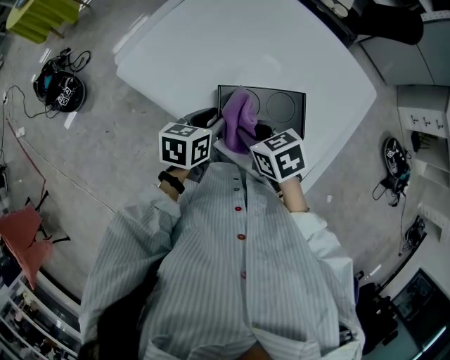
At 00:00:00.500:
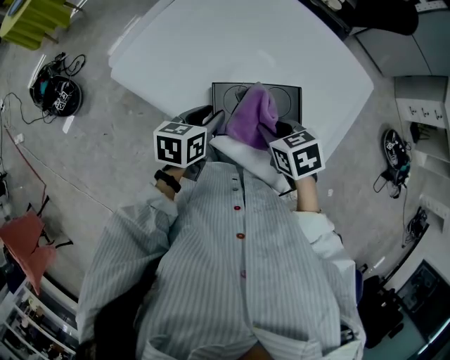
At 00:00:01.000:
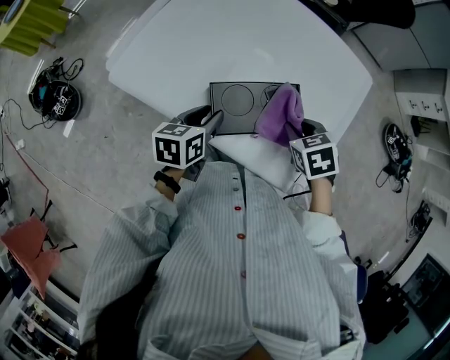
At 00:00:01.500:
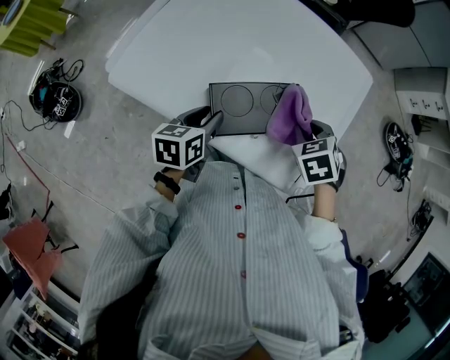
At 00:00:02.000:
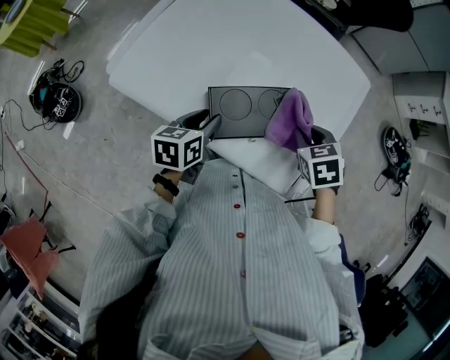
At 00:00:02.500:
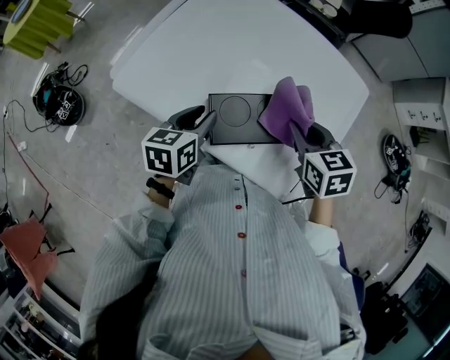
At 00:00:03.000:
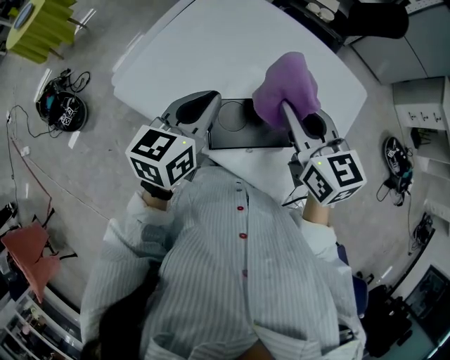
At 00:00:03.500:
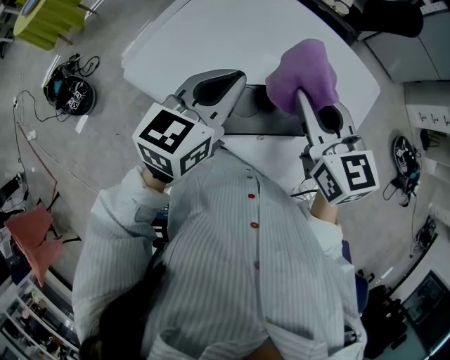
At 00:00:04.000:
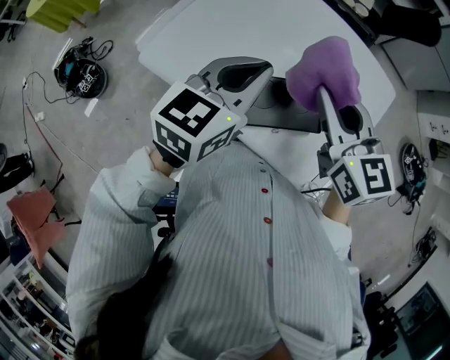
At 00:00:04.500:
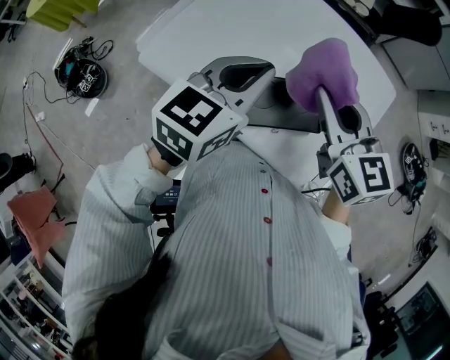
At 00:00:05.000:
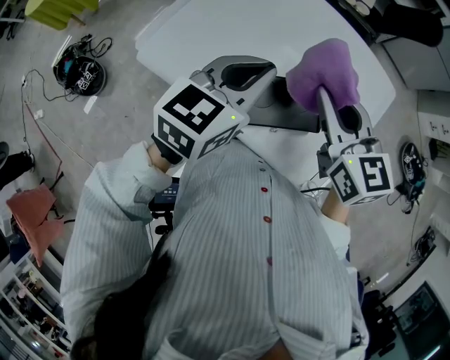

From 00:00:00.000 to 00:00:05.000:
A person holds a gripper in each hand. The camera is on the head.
From 00:00:00.000 to 00:00:02.500: The left gripper ends up about 5 cm from where it was, while the right gripper moves about 15 cm, and turns by approximately 20 degrees.
From 00:00:02.500 to 00:00:05.000: The two grippers go about 15 cm upward. The left gripper rotates some 30 degrees, and closes up; the right gripper swivels approximately 30 degrees.

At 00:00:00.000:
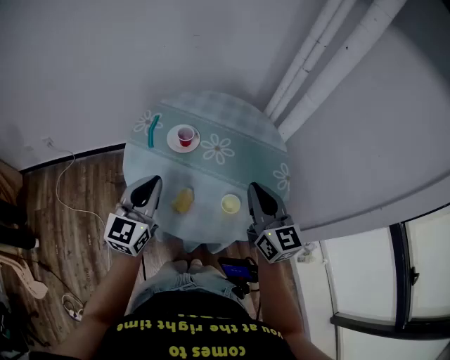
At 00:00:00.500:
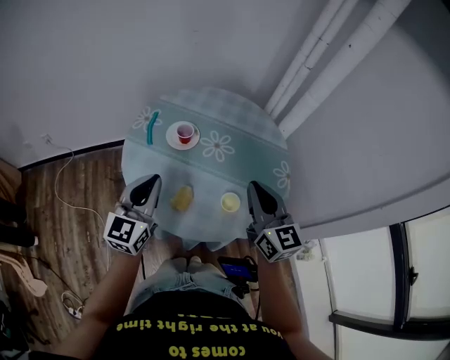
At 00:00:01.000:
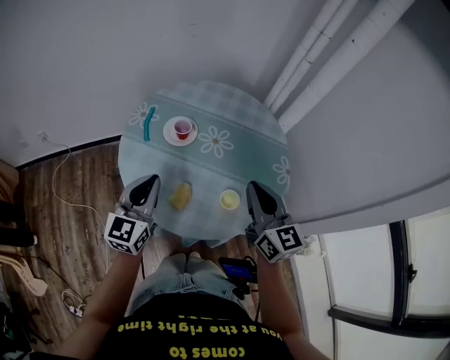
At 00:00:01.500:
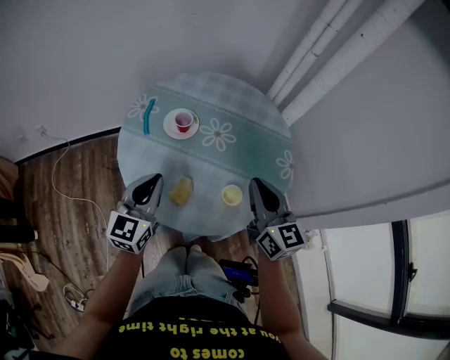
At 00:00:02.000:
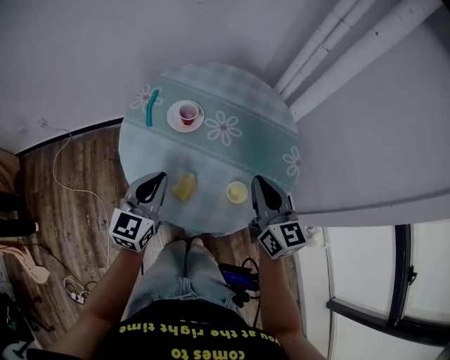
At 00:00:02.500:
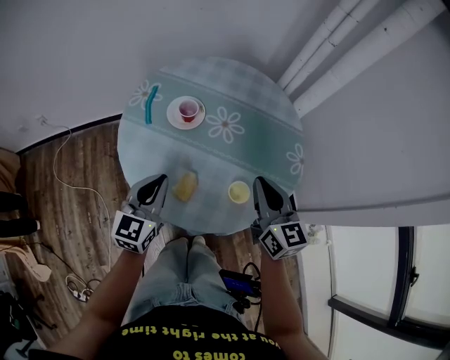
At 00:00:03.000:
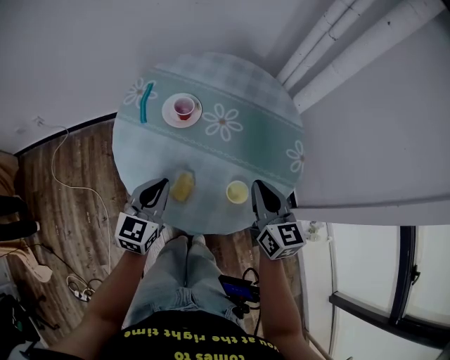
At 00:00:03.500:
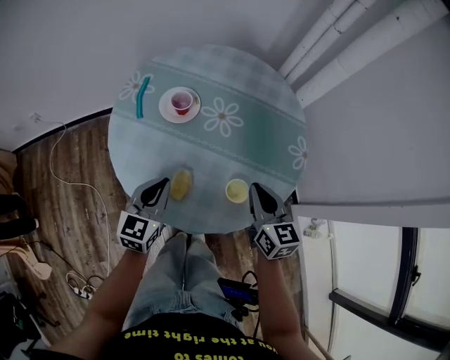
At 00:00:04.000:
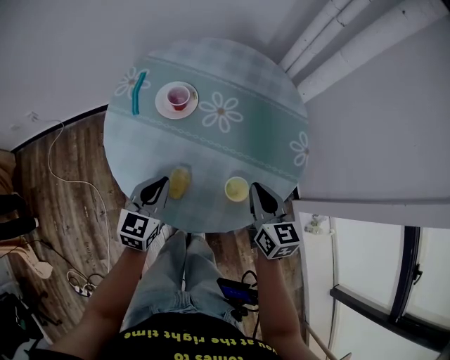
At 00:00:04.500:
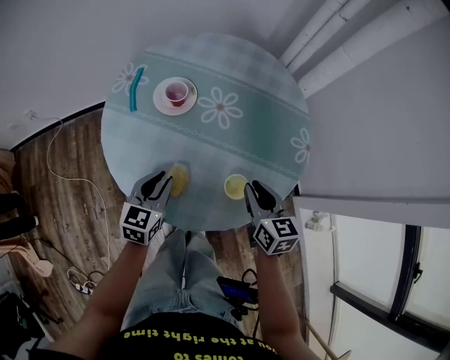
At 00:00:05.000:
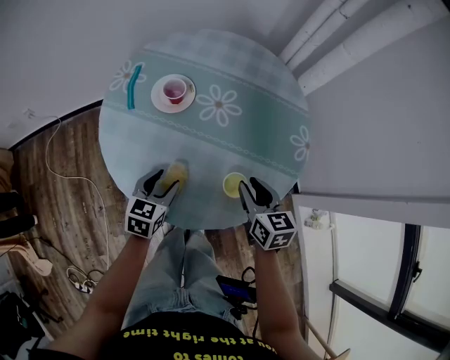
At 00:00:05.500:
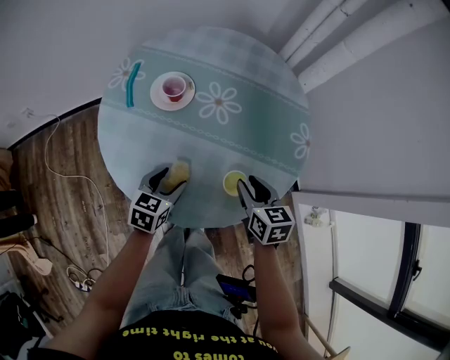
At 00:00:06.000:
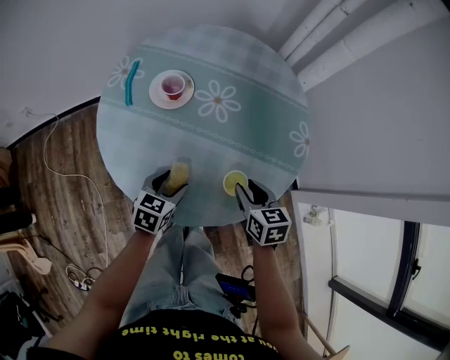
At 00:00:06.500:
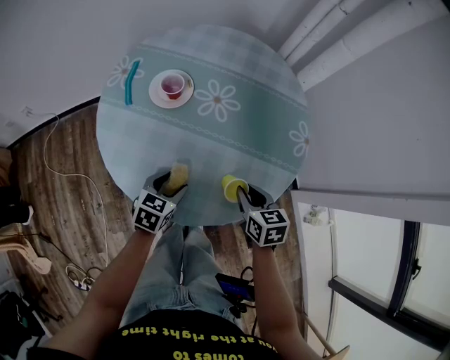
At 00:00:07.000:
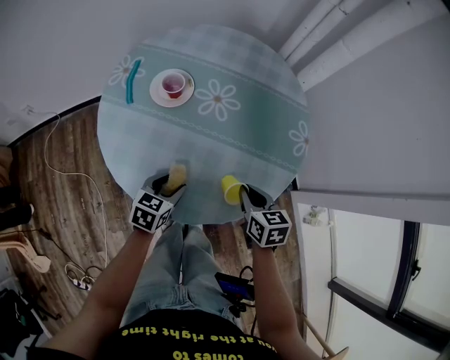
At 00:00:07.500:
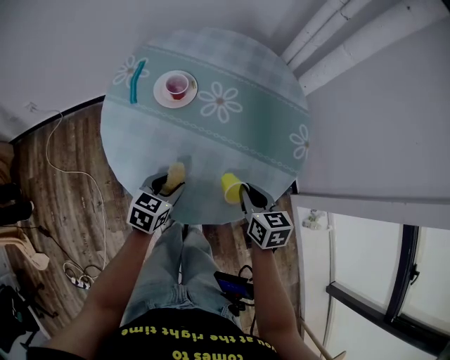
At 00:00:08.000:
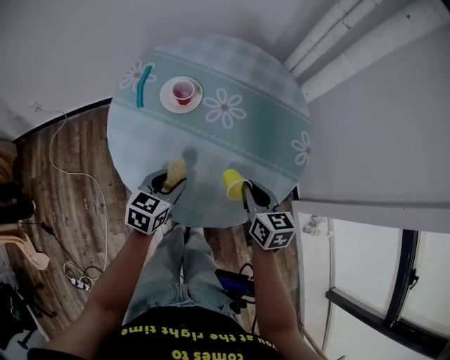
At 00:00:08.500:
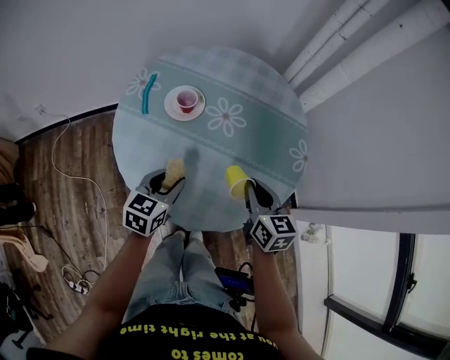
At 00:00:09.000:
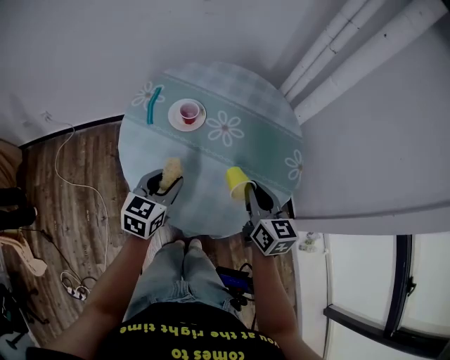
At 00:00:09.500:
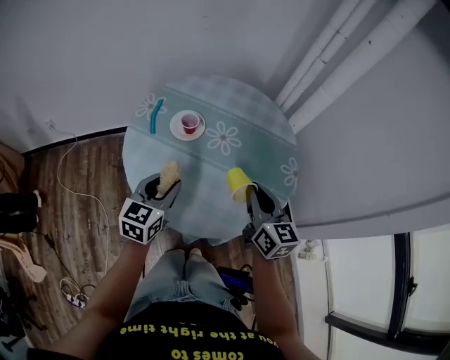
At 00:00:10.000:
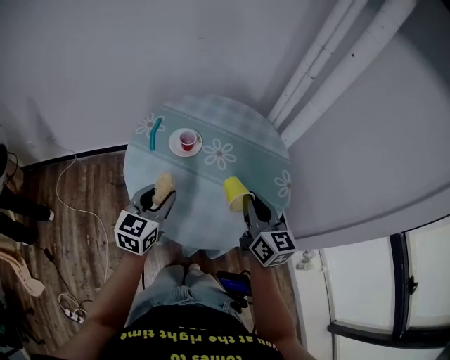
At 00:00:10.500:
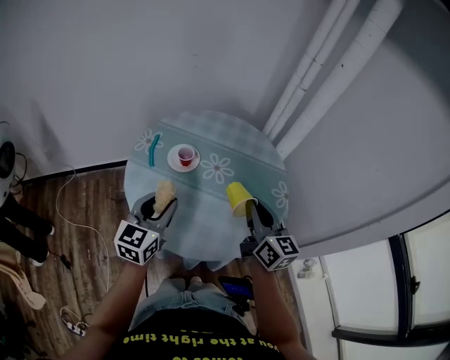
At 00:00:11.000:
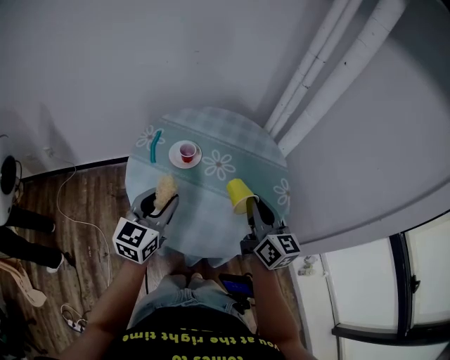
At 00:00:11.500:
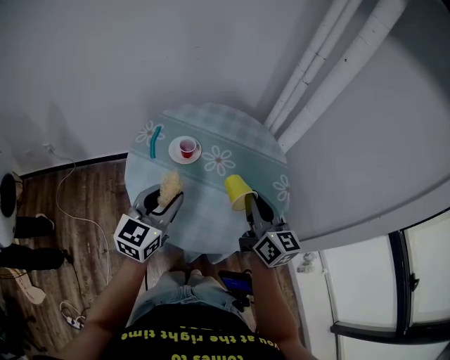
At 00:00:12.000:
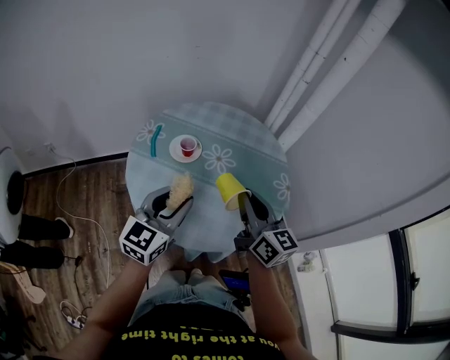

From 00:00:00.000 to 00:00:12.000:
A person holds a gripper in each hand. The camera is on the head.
From 00:00:00.000 to 00:00:02.000: Both grippers move downward, about 5 cm.
From 00:00:02.000 to 00:00:04.000: Both grippers move downward, approximately 15 cm.
From 00:00:04.000 to 00:00:06.000: The two grippers go roughly 10 cm downward. The left gripper turns by some 20 degrees, and opens up. Meanwhile the right gripper opens.
From 00:00:06.000 to 00:00:08.000: The left gripper goes approximately 5 cm upward, and closes its fingers, while the right gripper closes up.
From 00:00:08.000 to 00:00:10.000: Both grippers travel together upward, about 15 cm. The right gripper turns by about 30 degrees. The left gripper changes its angle by approximately 20 degrees.
From 00:00:10.000 to 00:00:12.000: The right gripper changes place by roughly 5 cm, while the left gripper goes roughly 5 cm upward.

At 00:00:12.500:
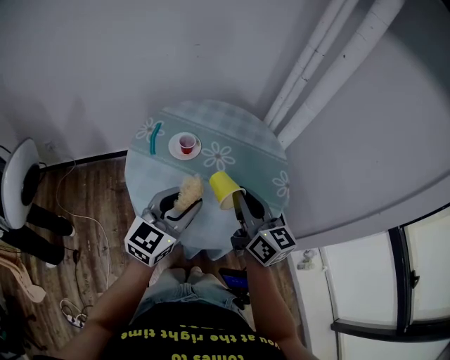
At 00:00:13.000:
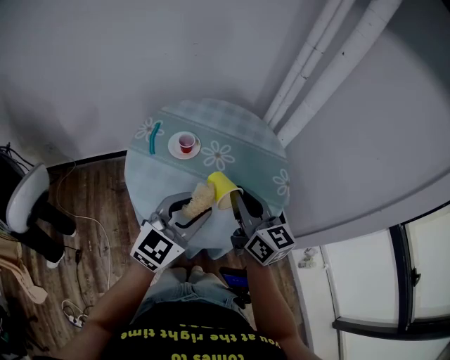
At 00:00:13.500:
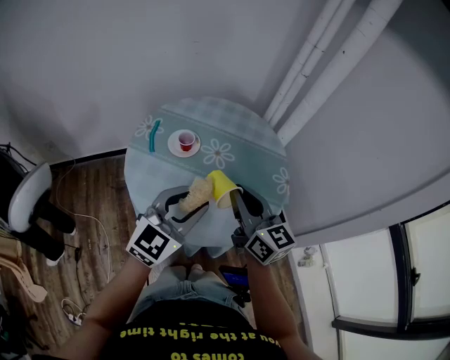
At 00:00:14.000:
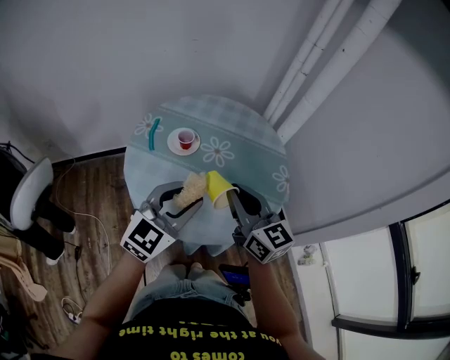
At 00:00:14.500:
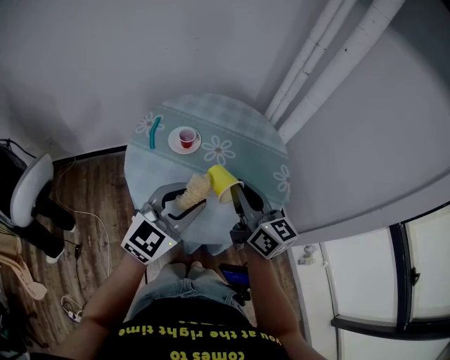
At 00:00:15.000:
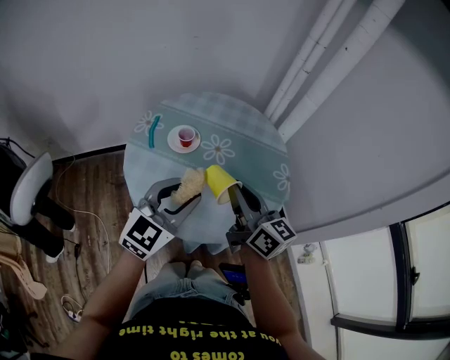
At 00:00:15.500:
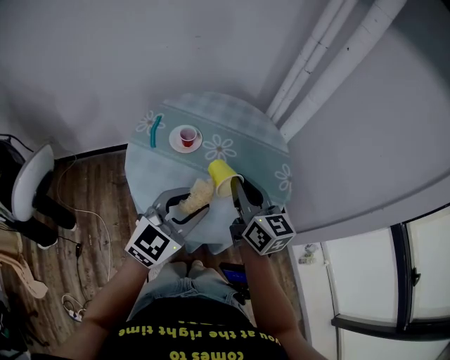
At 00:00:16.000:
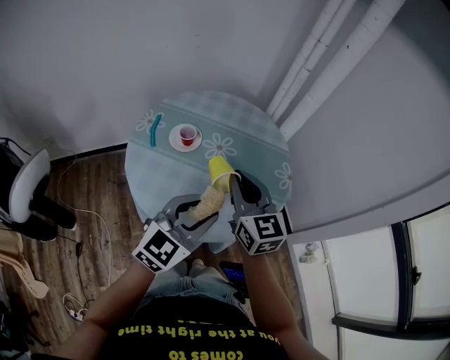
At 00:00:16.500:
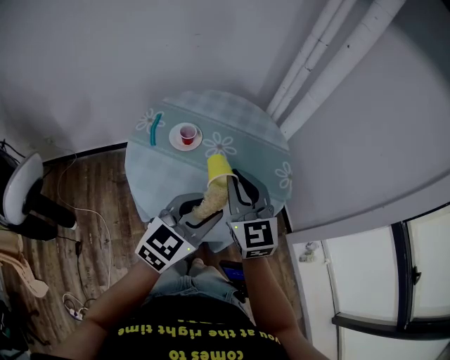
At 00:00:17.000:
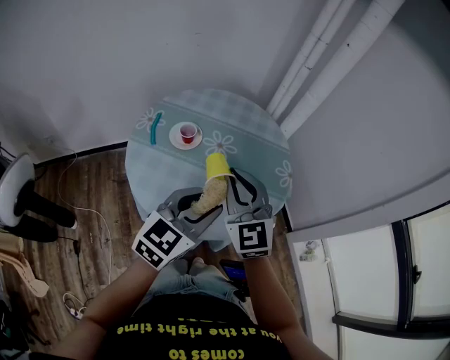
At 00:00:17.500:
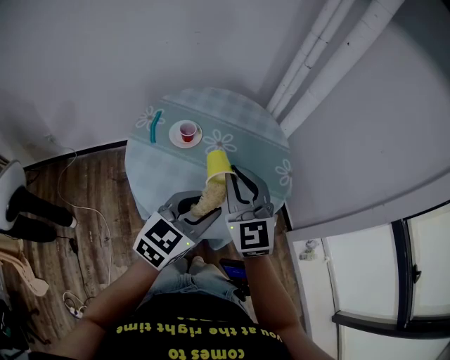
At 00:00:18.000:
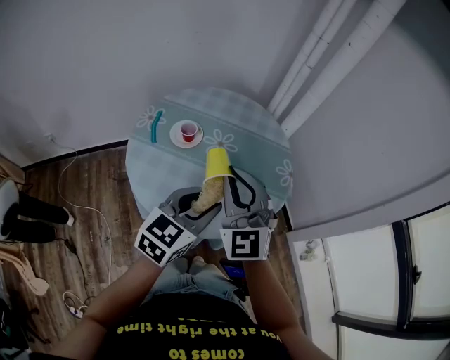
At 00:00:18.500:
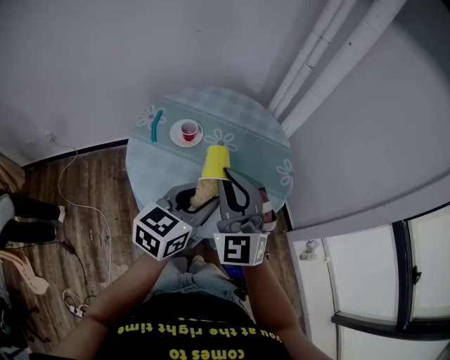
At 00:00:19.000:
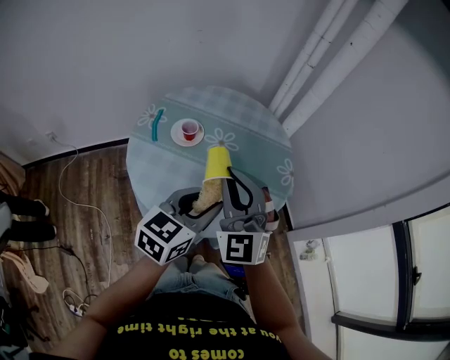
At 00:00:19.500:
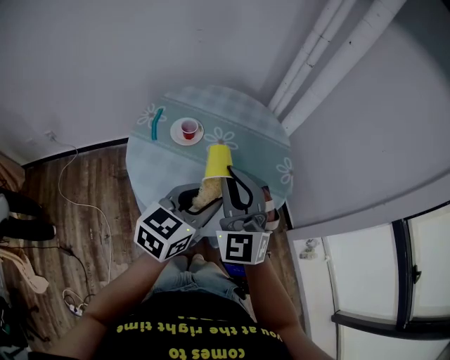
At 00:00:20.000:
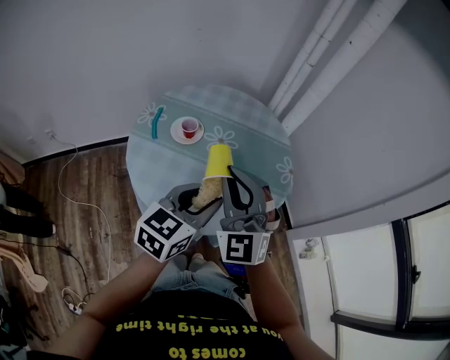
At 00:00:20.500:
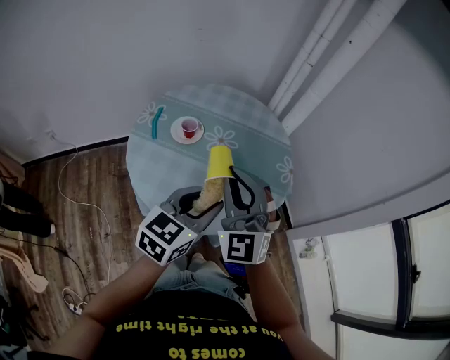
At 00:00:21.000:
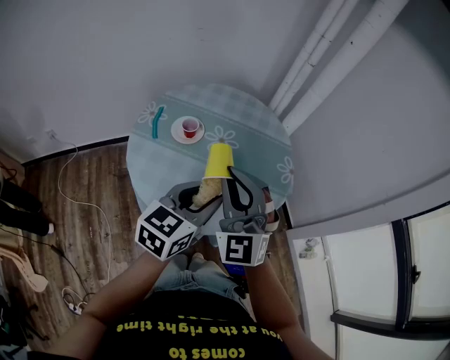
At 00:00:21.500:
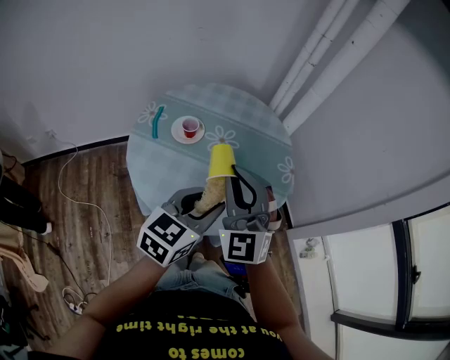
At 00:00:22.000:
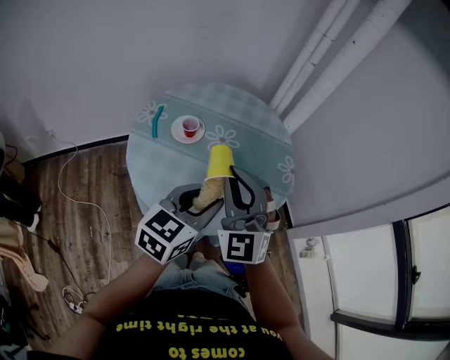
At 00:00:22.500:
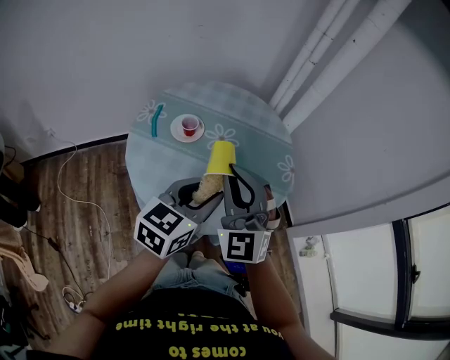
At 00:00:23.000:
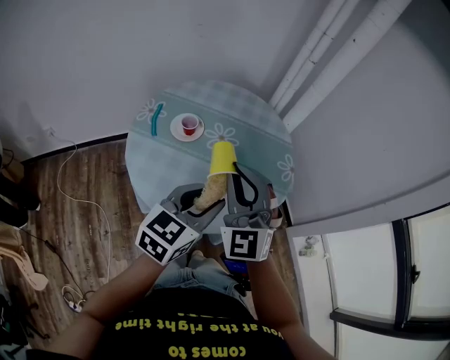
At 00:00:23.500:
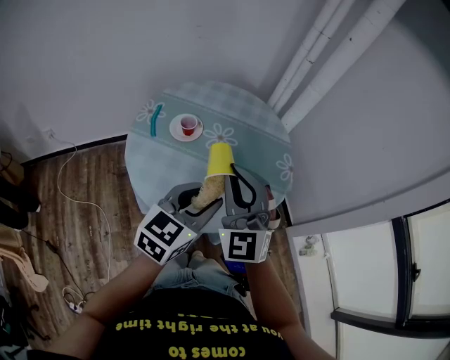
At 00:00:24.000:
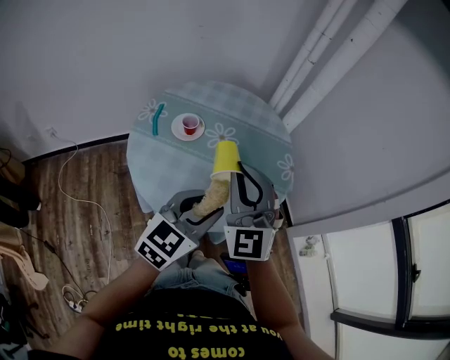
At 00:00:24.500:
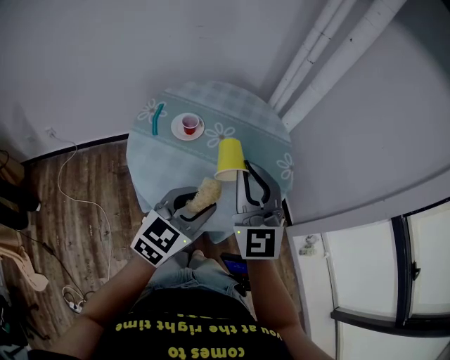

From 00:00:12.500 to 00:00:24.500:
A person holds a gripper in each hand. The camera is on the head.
From 00:00:12.500 to 00:00:14.500: The grippers make only small movements.
From 00:00:14.500 to 00:00:16.500: The right gripper swivels approximately 40 degrees.
From 00:00:16.500 to 00:00:18.500: The right gripper changes place by roughly 5 cm, and turns by about 30 degrees.
From 00:00:18.500 to 00:00:22.500: There are only small adjustments of the grippers.
From 00:00:22.500 to 00:00:24.500: The right gripper rotates approximately 20 degrees.
